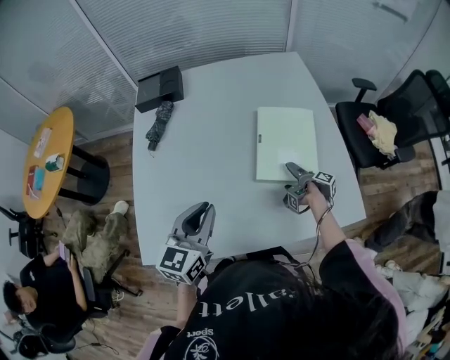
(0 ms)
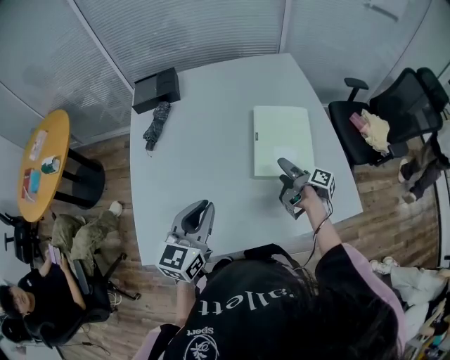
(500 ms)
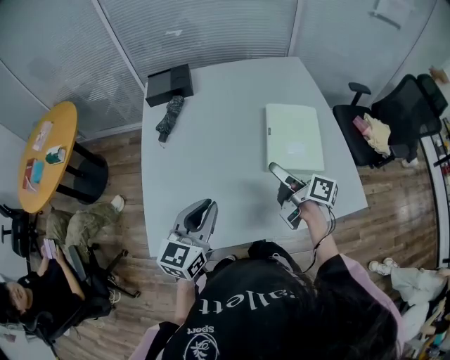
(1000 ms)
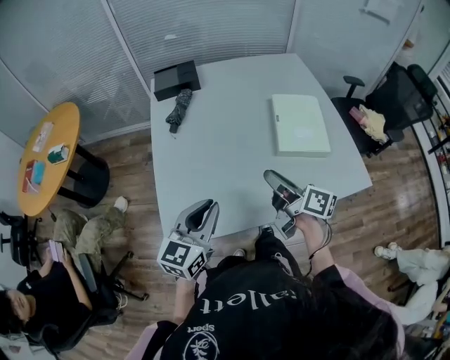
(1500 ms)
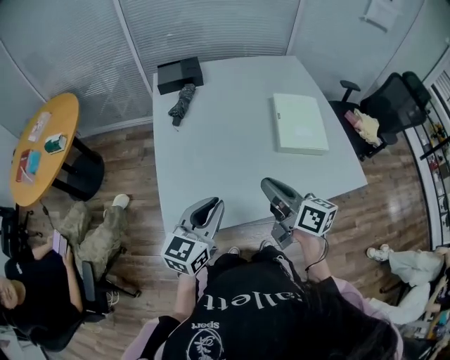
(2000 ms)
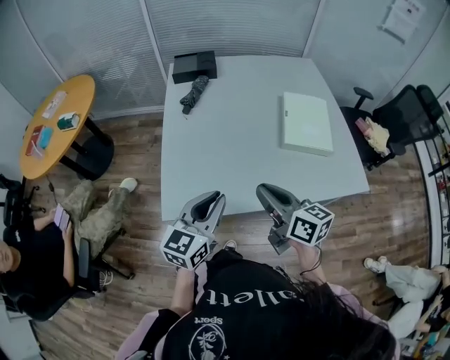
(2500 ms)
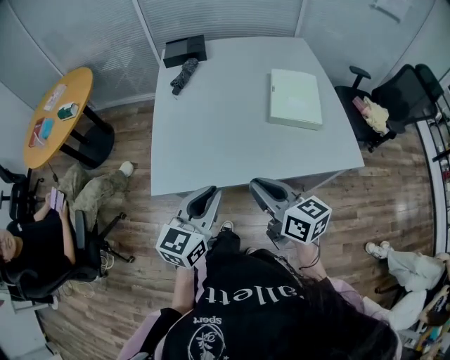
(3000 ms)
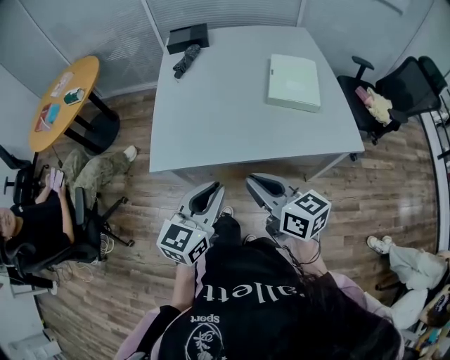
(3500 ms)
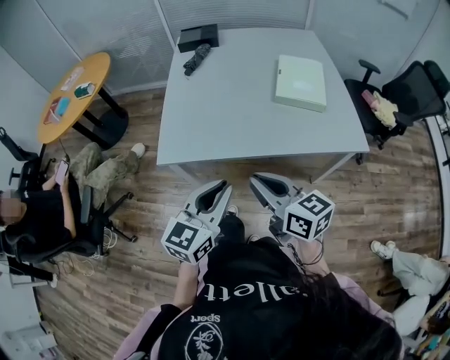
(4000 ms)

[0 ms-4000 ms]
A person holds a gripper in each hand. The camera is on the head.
0 ms to 2000 ms: The left gripper moves some 20 cm.
2000 ms to 4000 ms: The left gripper shifts by some 25 cm.

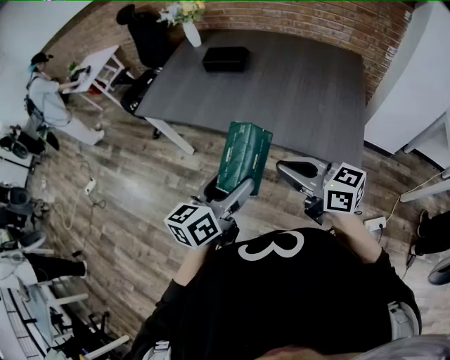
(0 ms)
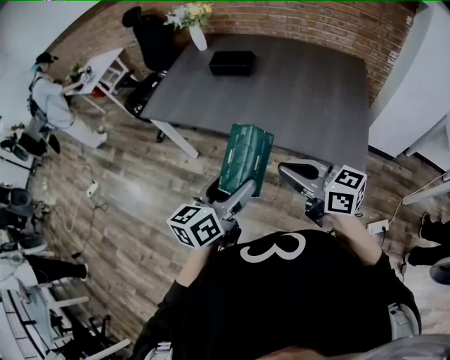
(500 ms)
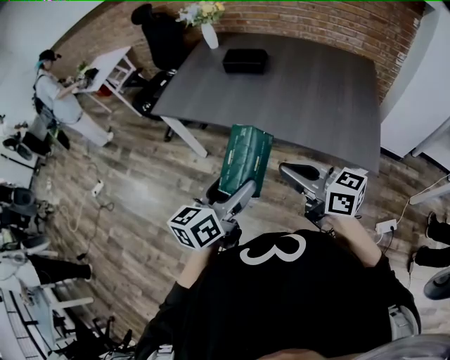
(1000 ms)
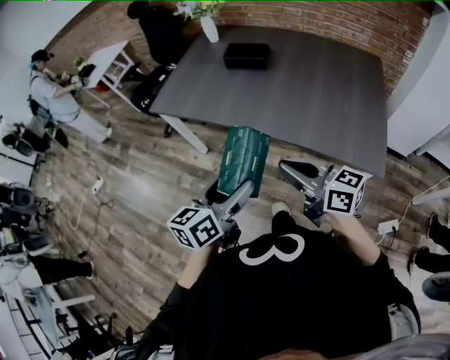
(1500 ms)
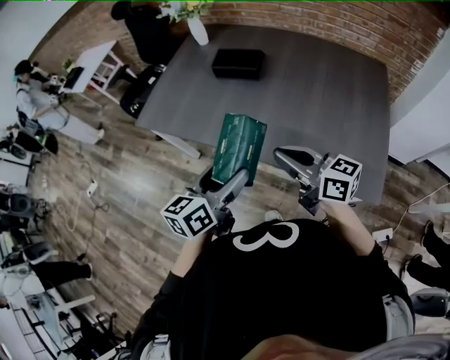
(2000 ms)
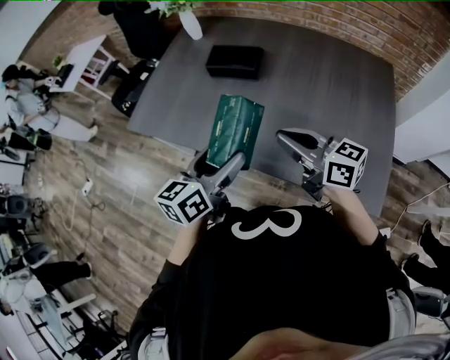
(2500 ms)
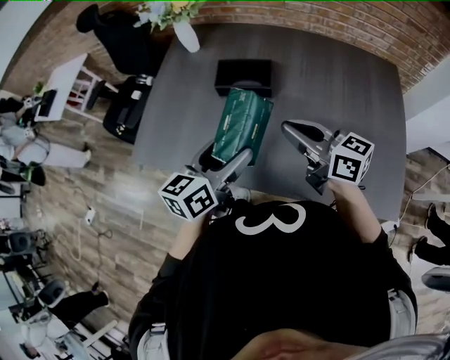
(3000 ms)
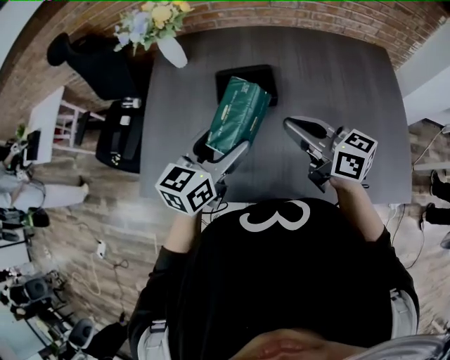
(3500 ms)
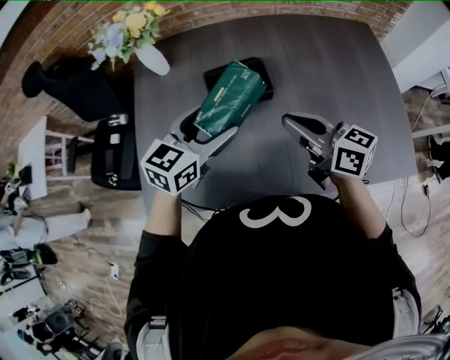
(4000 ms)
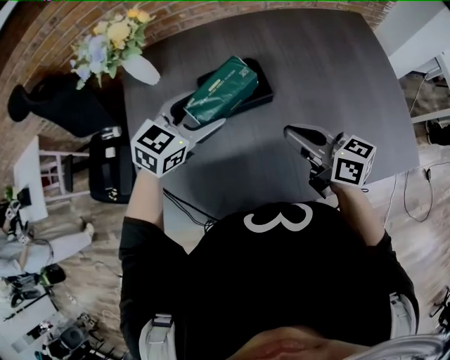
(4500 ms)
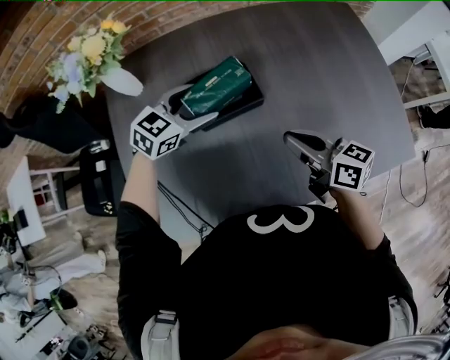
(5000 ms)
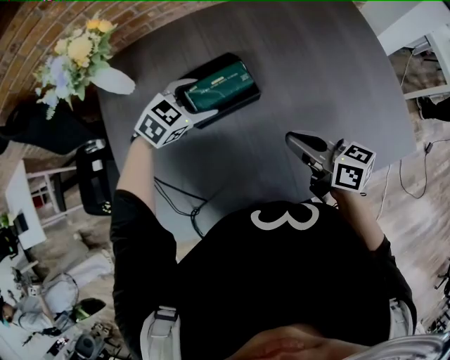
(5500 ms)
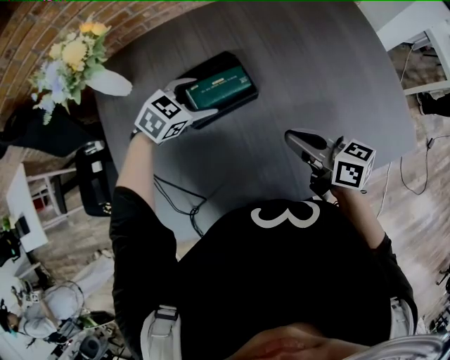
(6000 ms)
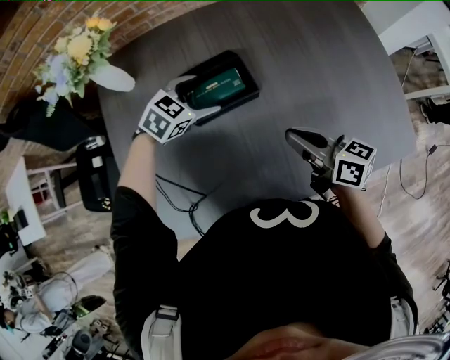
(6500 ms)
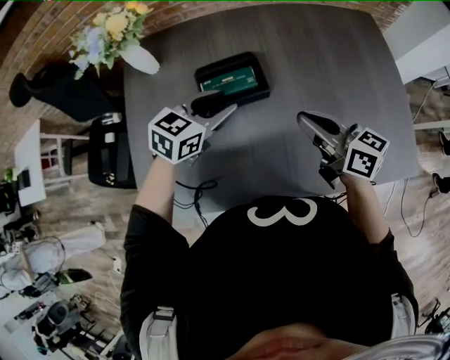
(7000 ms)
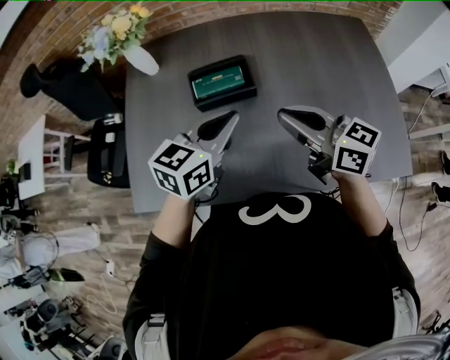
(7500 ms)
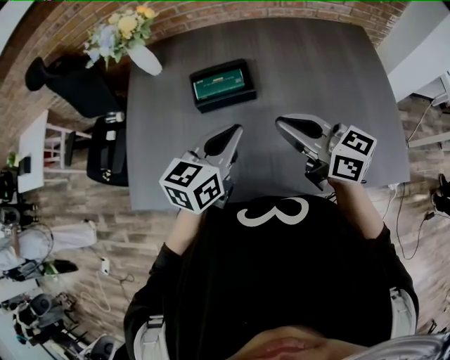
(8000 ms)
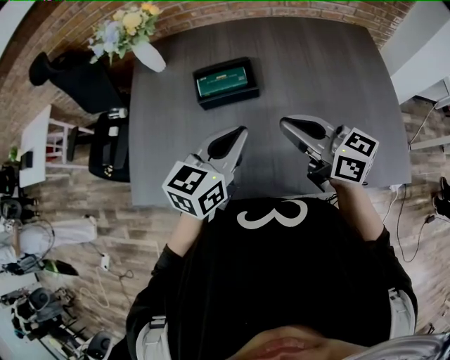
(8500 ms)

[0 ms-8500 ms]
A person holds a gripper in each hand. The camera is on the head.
0 ms to 2000 ms: The two grippers go about 20 cm forward.
2000 ms to 4000 ms: The right gripper moves about 30 cm, and turns by roughly 30 degrees. Meanwhile the left gripper changes place by approximately 40 cm, and turns by approximately 50 degrees.
4000 ms to 6500 ms: The right gripper goes approximately 10 cm downward; the left gripper shifts some 20 cm forward and downward, and rotates approximately 40 degrees.
6500 ms to 8500 ms: The right gripper heads upward, covering some 10 cm, and rotates roughly 20 degrees, while the left gripper shifts some 25 cm backward and upward, turns by approximately 50 degrees, and closes its fingers.

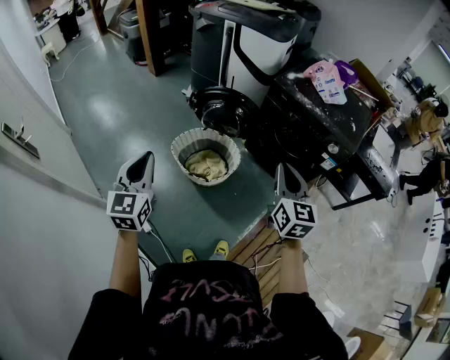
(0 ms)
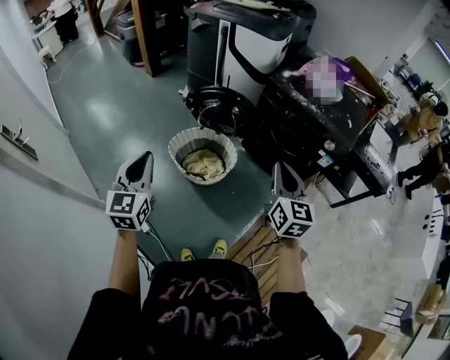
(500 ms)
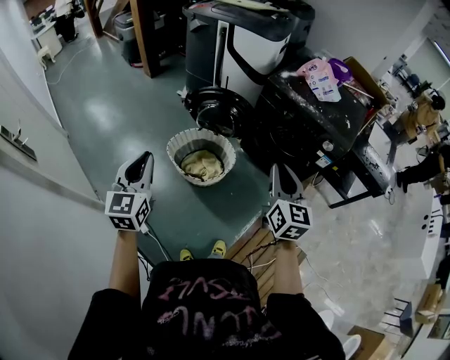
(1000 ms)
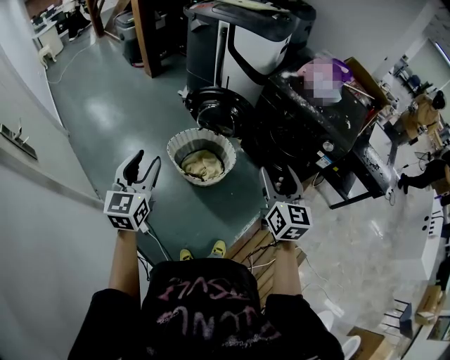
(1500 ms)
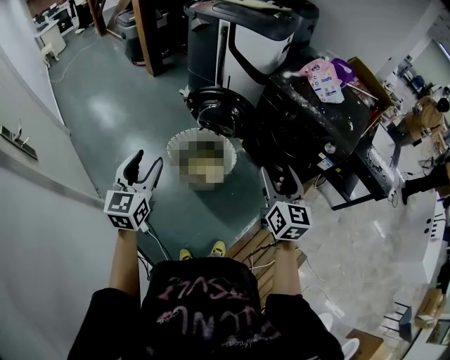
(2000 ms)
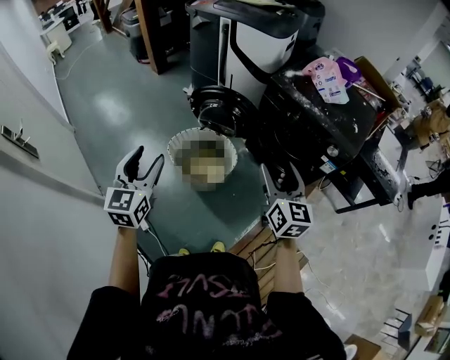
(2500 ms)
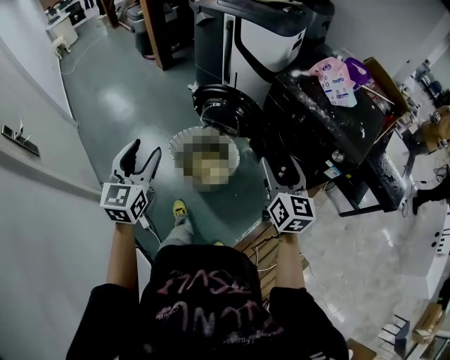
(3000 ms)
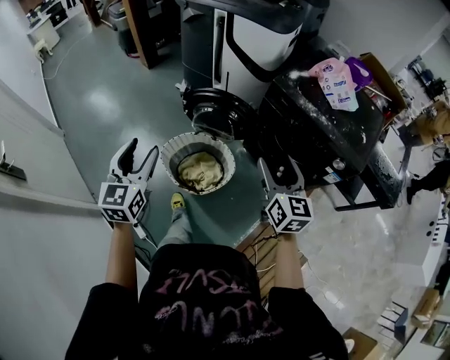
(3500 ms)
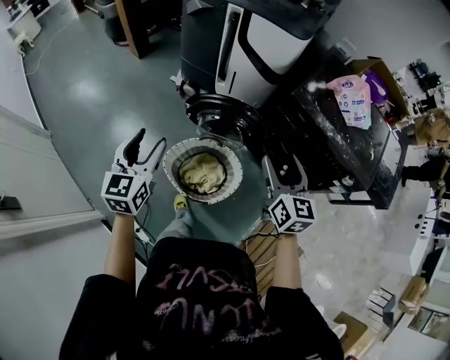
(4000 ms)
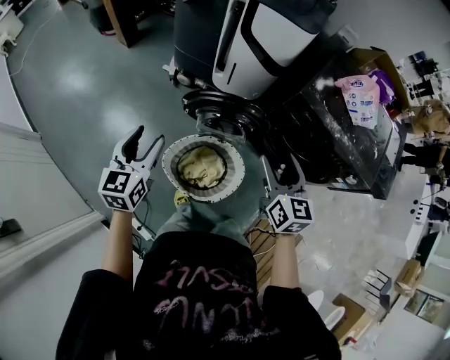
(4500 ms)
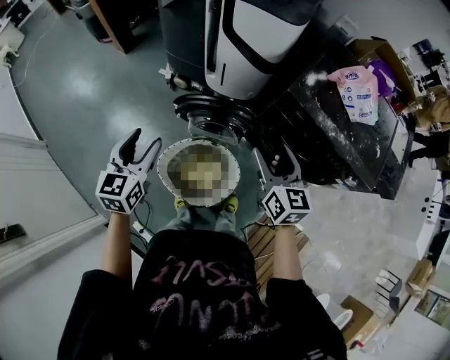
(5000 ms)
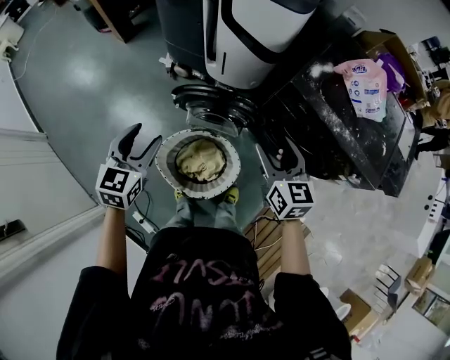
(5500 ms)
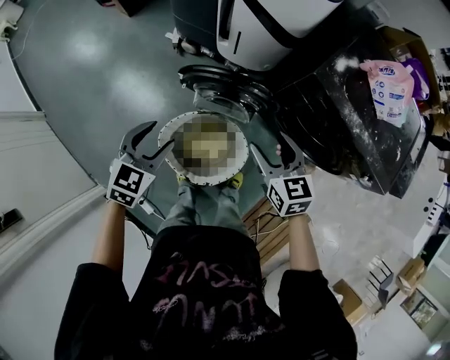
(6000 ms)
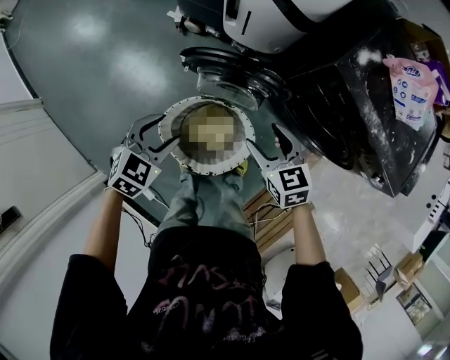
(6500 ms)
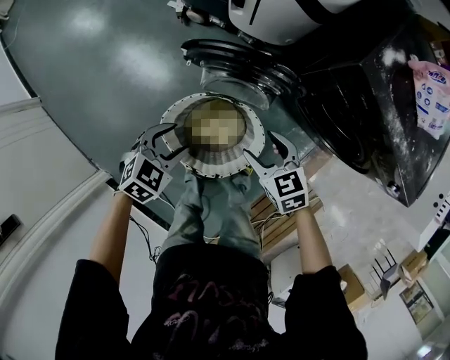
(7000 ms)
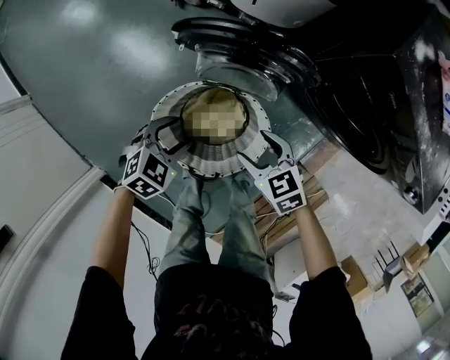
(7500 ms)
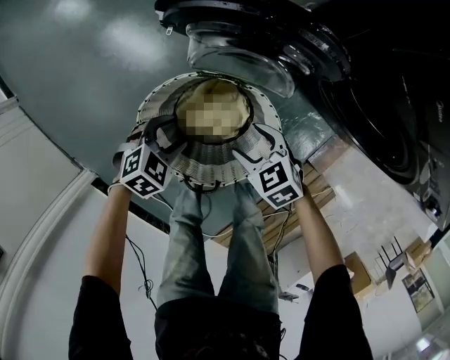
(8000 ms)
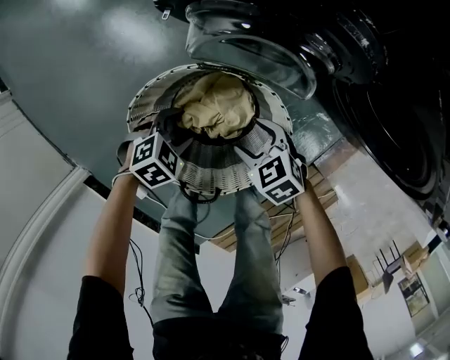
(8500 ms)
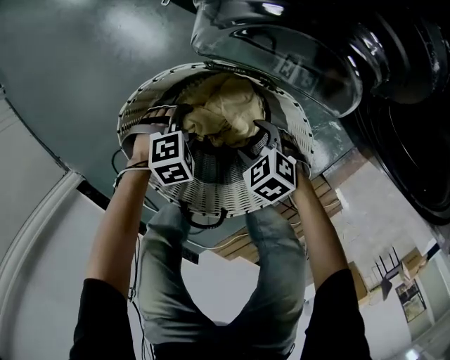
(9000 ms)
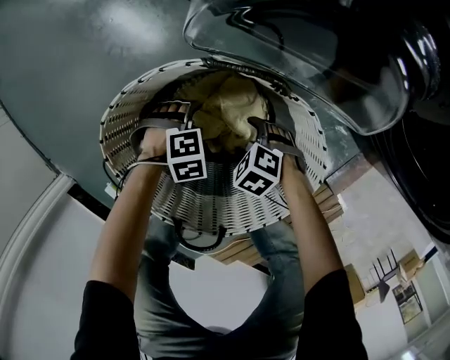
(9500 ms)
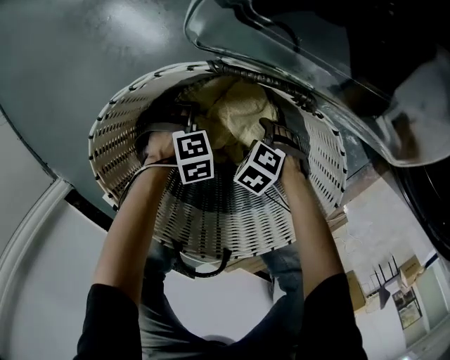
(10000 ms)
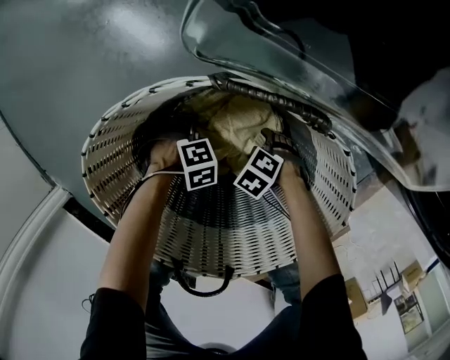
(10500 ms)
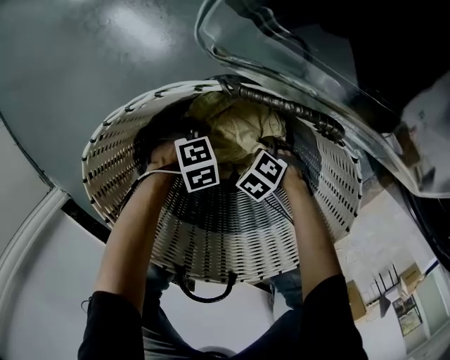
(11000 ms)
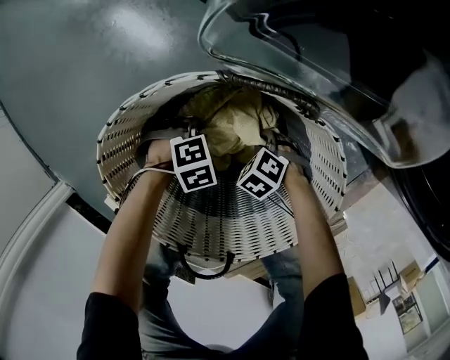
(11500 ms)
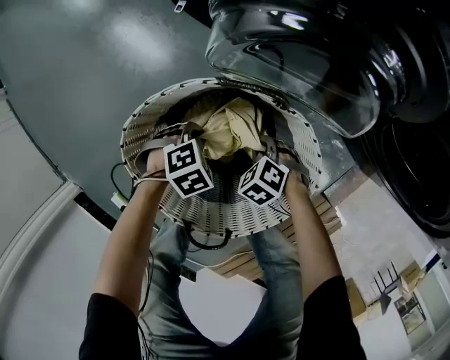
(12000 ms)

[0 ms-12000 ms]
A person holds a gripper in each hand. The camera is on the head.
0 ms to 2000 ms: The right gripper opens. Meanwhile the left gripper opens up.
2000 ms to 4000 ms: The two grippers go roughly 30 cm forward.
4000 ms to 6000 ms: The right gripper shifts some 15 cm downward and forward, and turns by approximately 20 degrees. Meanwhile the left gripper is displaced downward, forward and to the right by roughly 15 cm, and swivels some 30 degrees.
6000 ms to 8000 ms: The two grippers go about 40 cm downward. The right gripper turns by about 40 degrees; the left gripper swivels some 30 degrees.
8000 ms to 10000 ms: Both grippers travel together downward, roughly 35 cm. The right gripper swivels approximately 40 degrees; the left gripper swivels approximately 30 degrees.
10000 ms to 12000 ms: Both grippers travel together upward, roughly 10 cm. The right gripper closes its fingers; the left gripper closes up.

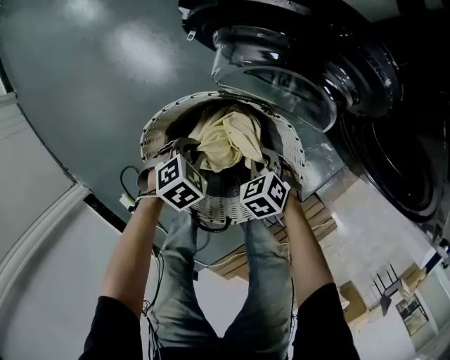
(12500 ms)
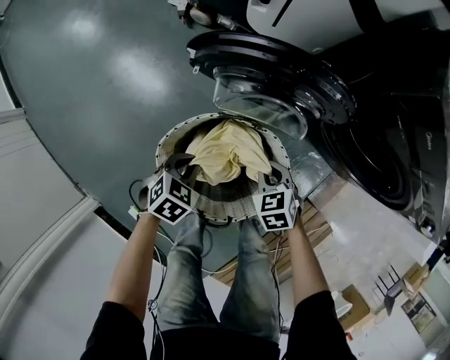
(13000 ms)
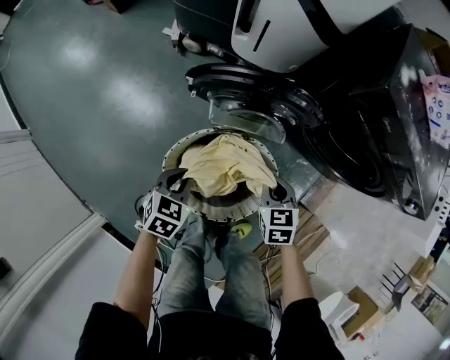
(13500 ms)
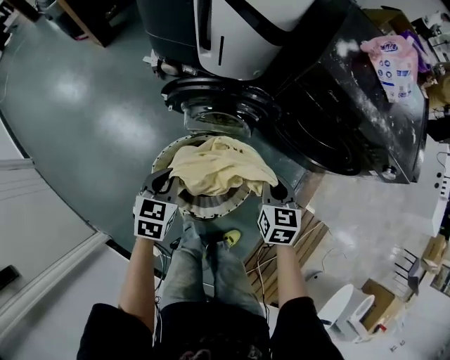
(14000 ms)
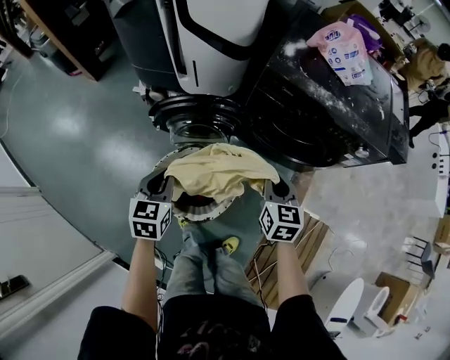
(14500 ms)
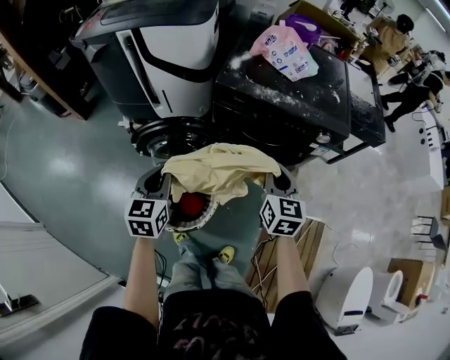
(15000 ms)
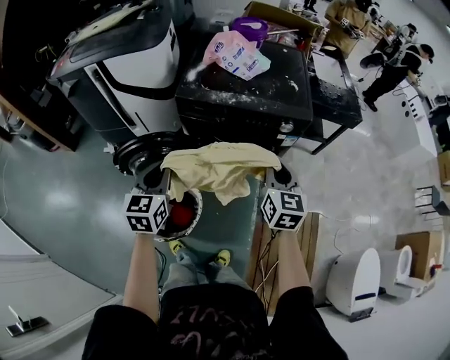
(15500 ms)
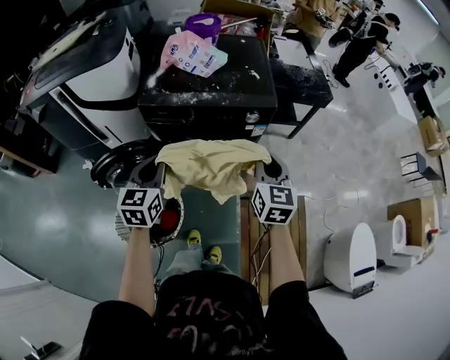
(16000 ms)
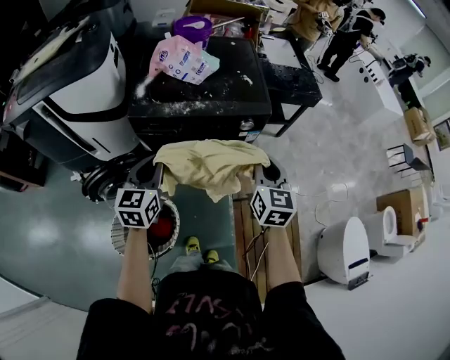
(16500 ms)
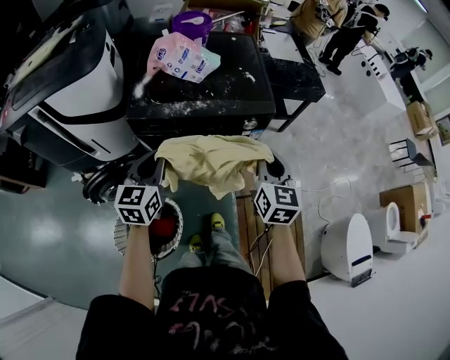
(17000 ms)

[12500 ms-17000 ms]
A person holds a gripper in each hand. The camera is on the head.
12500 ms to 14500 ms: The two grippers go roughly 50 cm upward. The right gripper tips its fingers upward by some 40 degrees, while the left gripper tips its fingers upward by some 30 degrees.
14500 ms to 17000 ms: The left gripper ends up roughly 40 cm from where it was, and turns by some 30 degrees, while the right gripper ends up approximately 35 cm from where it was, and changes its angle by approximately 30 degrees.
